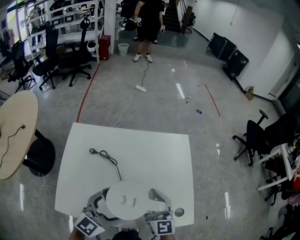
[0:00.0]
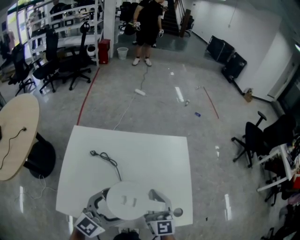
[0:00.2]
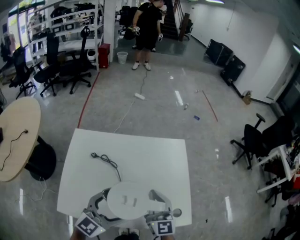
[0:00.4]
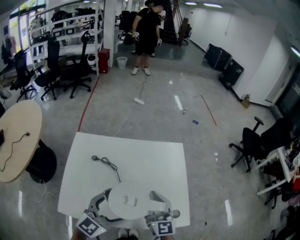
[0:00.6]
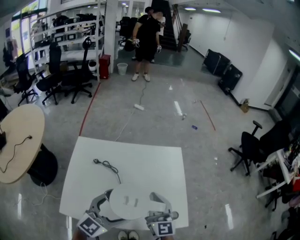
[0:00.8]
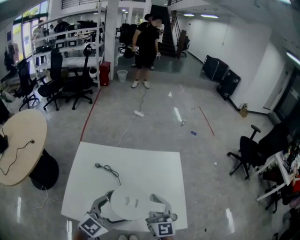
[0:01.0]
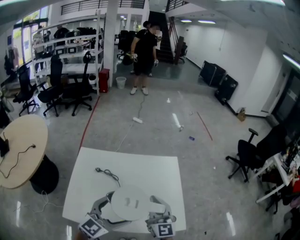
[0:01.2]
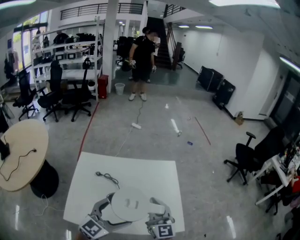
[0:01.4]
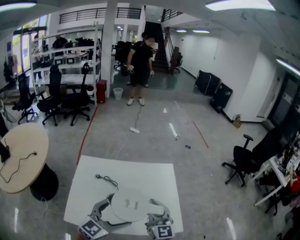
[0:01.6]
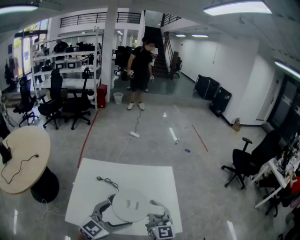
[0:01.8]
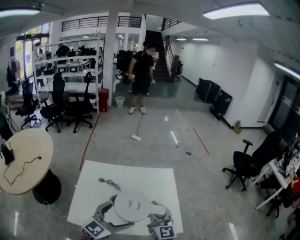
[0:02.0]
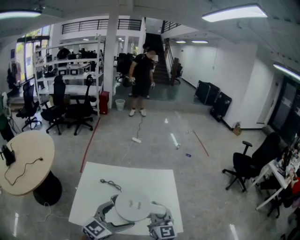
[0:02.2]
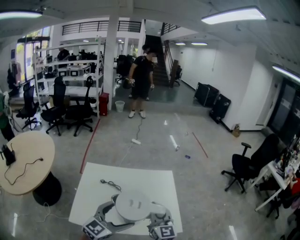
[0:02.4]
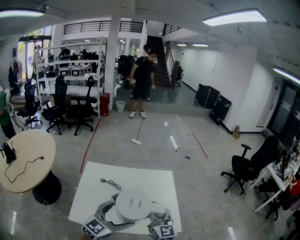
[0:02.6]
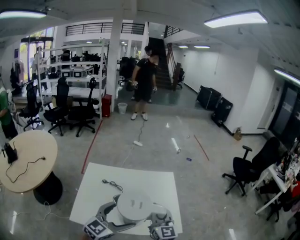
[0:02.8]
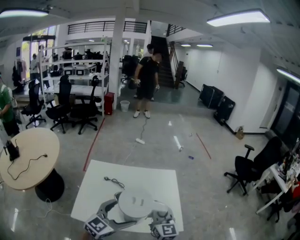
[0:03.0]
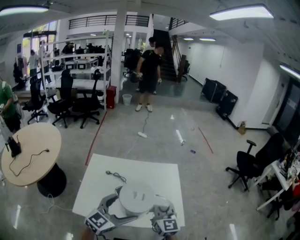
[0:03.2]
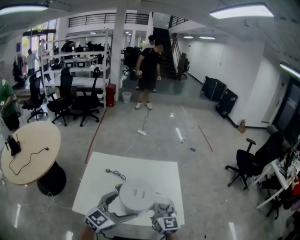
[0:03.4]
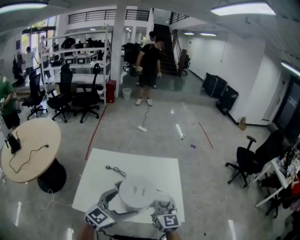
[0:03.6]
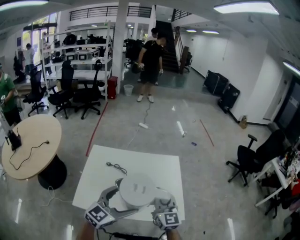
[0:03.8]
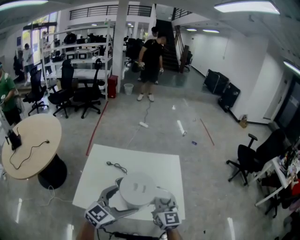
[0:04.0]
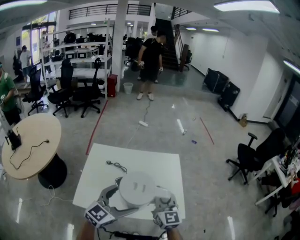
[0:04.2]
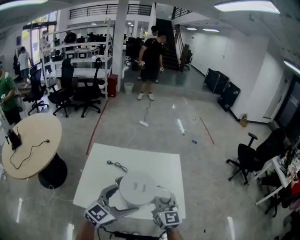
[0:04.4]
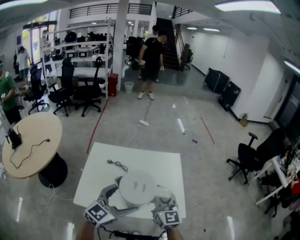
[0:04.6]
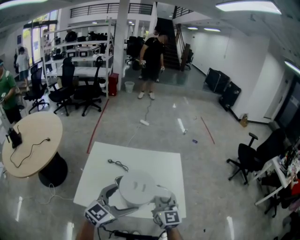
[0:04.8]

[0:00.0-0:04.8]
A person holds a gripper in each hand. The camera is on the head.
0:00.0 to 0:01.6: The two grippers go about 10 cm upward.
0:01.6 to 0:03.2: The left gripper changes place by approximately 5 cm.
0:03.2 to 0:04.8: Both grippers stay put.

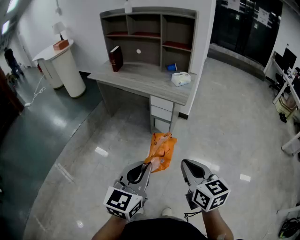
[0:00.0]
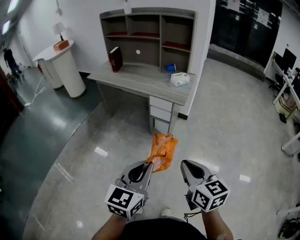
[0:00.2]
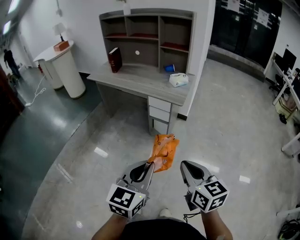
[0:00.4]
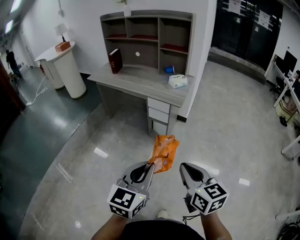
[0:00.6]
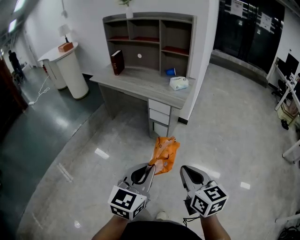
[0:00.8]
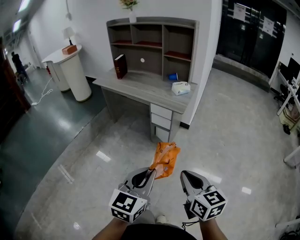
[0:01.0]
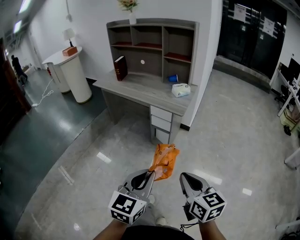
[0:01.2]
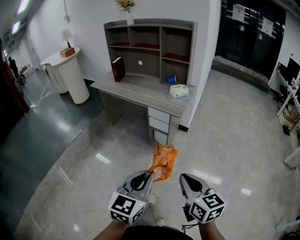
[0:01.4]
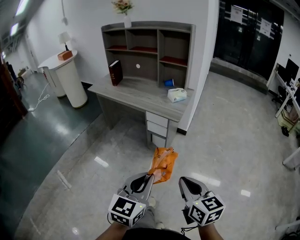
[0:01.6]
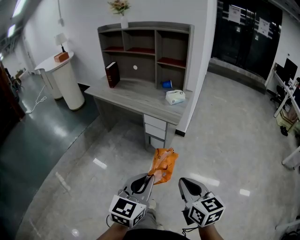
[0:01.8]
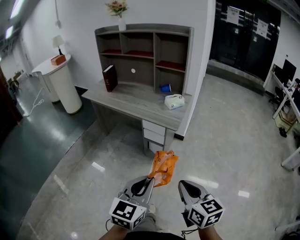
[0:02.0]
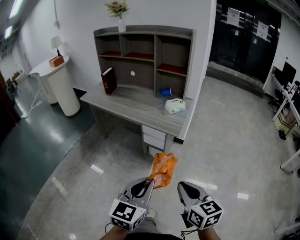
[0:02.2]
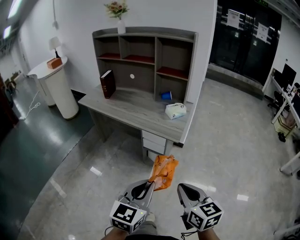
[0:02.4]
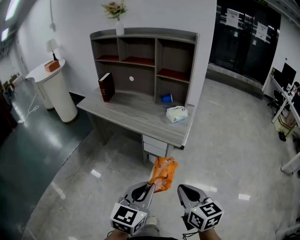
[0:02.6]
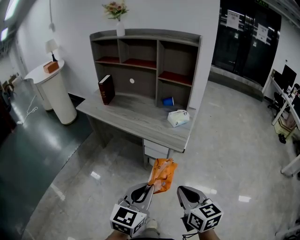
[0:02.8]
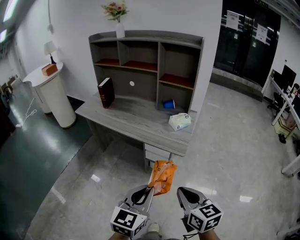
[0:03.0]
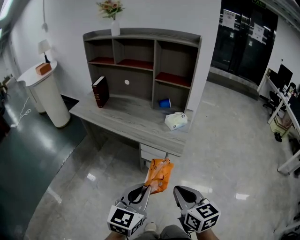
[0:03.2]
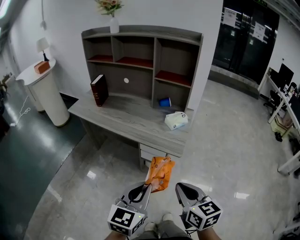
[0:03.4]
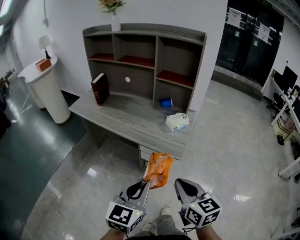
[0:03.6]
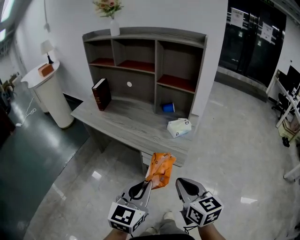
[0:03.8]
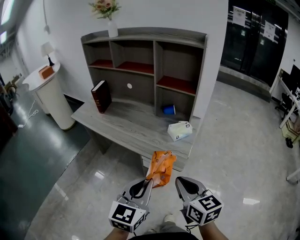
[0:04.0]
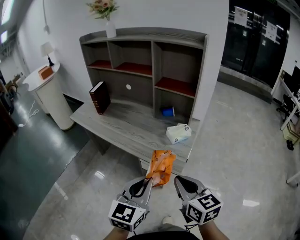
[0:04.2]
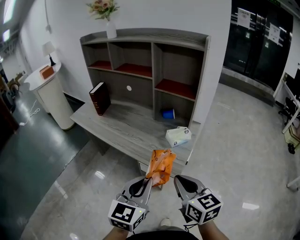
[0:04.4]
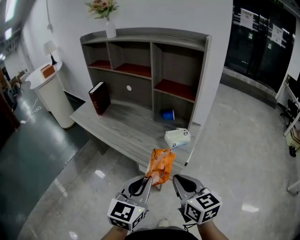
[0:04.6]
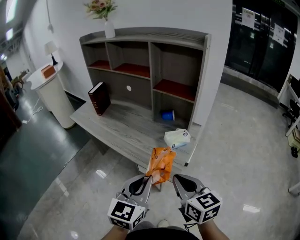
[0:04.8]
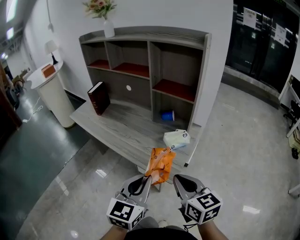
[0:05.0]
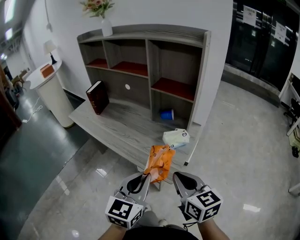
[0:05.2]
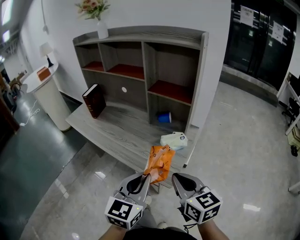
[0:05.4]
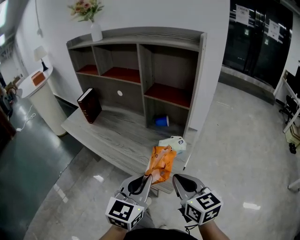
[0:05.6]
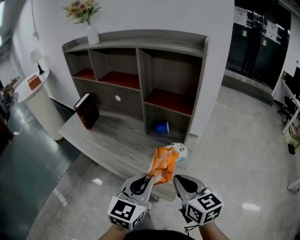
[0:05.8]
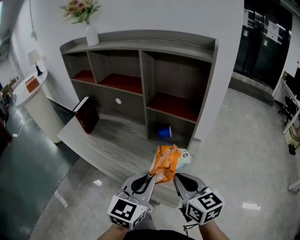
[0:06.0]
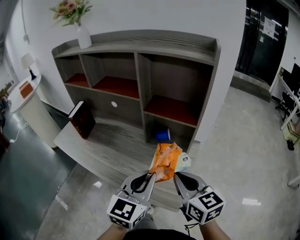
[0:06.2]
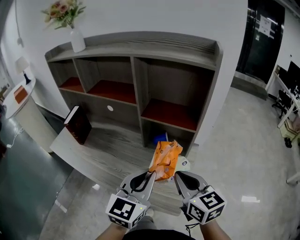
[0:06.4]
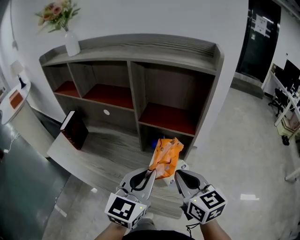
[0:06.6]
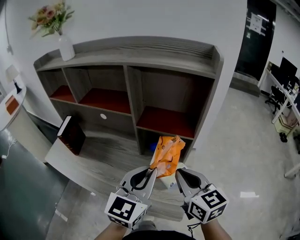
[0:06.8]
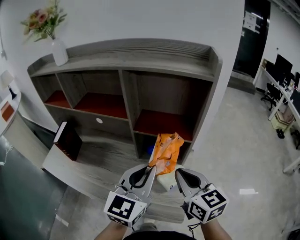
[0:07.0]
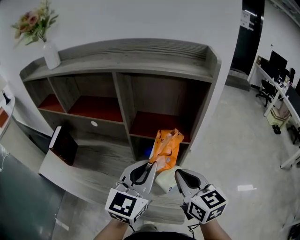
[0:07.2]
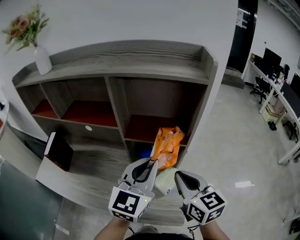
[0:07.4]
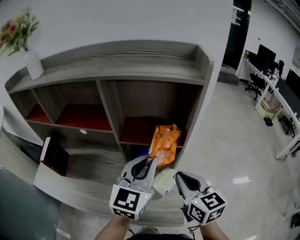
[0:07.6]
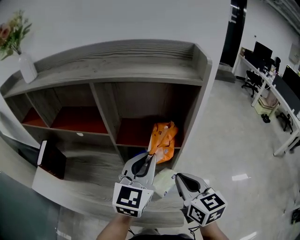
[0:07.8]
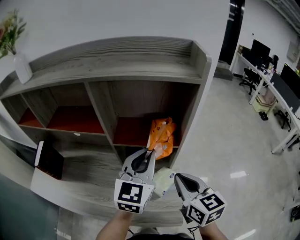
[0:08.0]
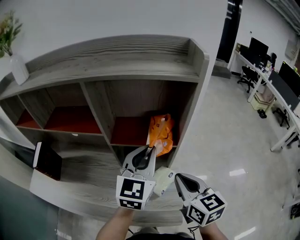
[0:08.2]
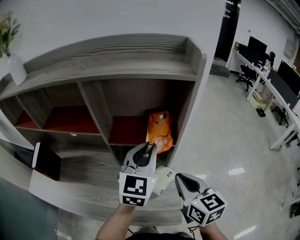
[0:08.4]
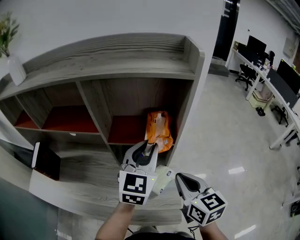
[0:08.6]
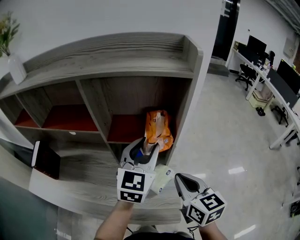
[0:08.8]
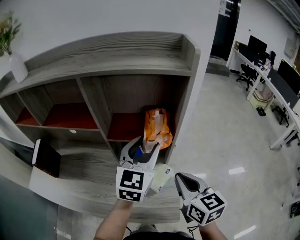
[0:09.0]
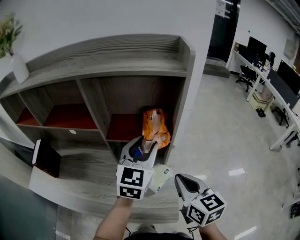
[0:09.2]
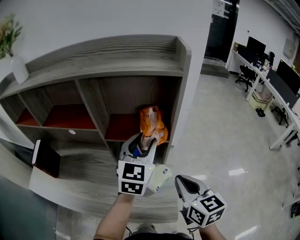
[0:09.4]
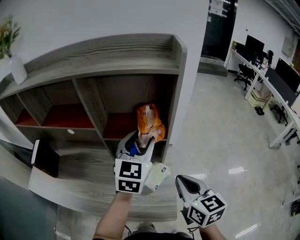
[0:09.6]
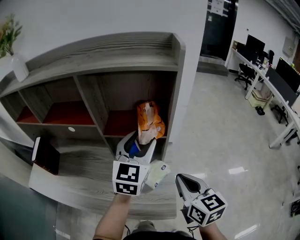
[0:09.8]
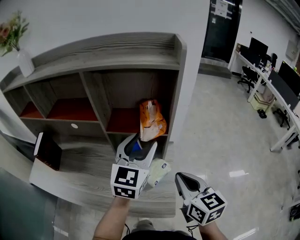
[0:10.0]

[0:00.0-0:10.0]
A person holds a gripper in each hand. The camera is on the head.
0:00.0 to 0:01.4: Both grippers move to the right, roughly 5 cm.
0:01.4 to 0:02.8: The grippers both shift forward by some 20 cm.
0:02.8 to 0:04.2: The grippers both shift forward by approximately 15 cm.
0:04.2 to 0:05.8: The left gripper goes about 15 cm forward and to the right. Meanwhile the right gripper travels forward by some 15 cm.
0:05.8 to 0:07.2: The right gripper heads forward, covering roughly 15 cm, while the left gripper shifts roughly 20 cm forward and upward.
0:07.2 to 0:08.6: The right gripper shifts by roughly 5 cm; the left gripper moves forward, some 10 cm.
0:08.6 to 0:10.0: The left gripper opens up. The right gripper ends up about 5 cm from where it was.

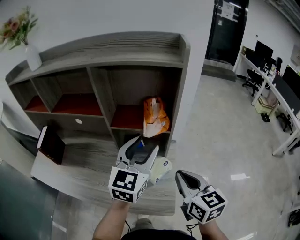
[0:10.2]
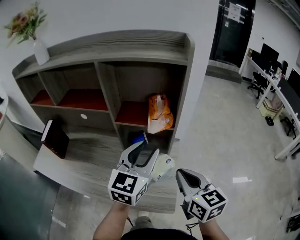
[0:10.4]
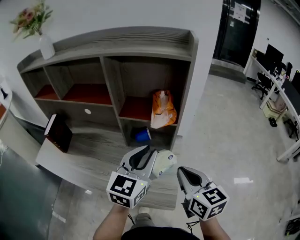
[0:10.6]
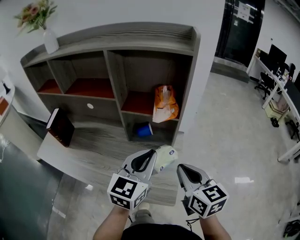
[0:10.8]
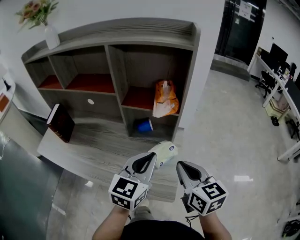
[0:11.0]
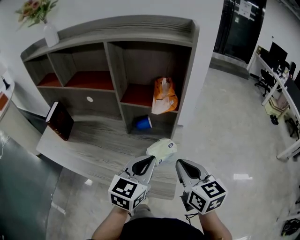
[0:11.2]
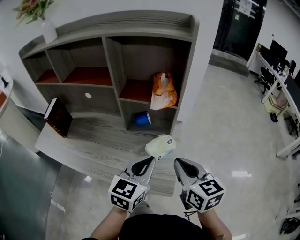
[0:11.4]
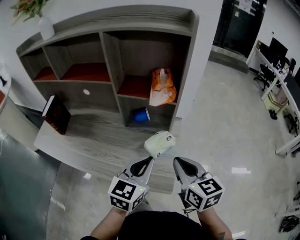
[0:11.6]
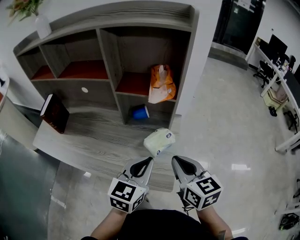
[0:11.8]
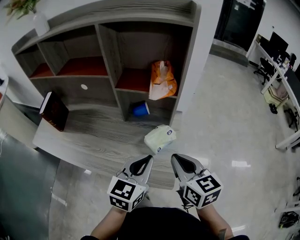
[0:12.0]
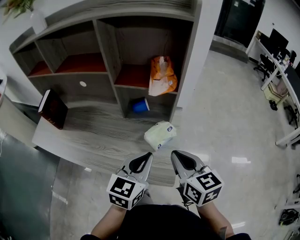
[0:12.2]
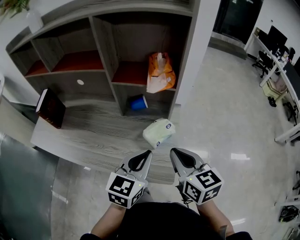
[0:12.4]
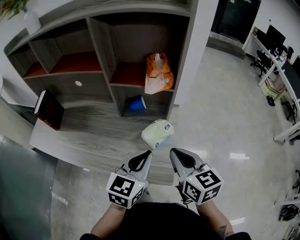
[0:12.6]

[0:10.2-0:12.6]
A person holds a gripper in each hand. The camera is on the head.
0:10.2 to 0:11.4: The left gripper is displaced backward and downward by some 15 cm, and closes. The right gripper moves approximately 5 cm.
0:11.4 to 0:12.6: The grippers stay close to where they were, moving slightly.

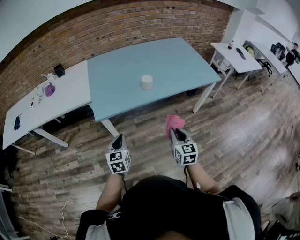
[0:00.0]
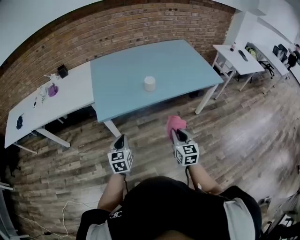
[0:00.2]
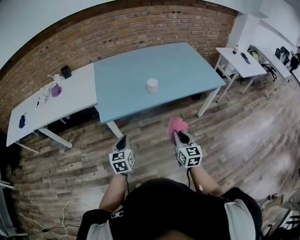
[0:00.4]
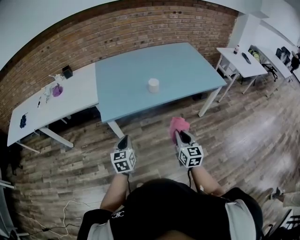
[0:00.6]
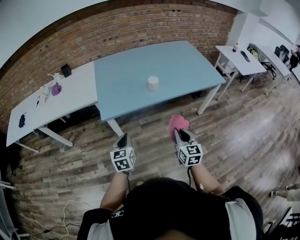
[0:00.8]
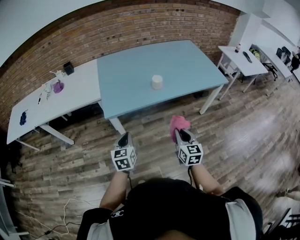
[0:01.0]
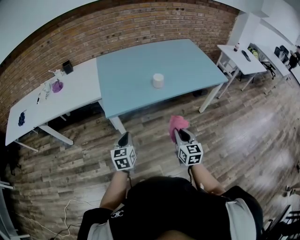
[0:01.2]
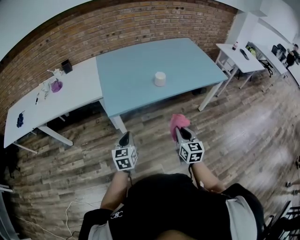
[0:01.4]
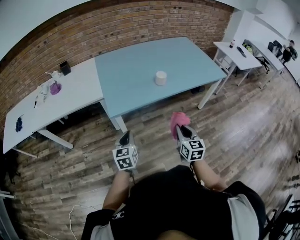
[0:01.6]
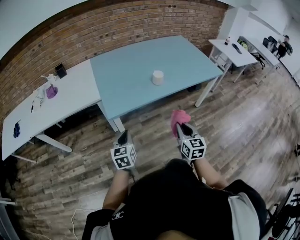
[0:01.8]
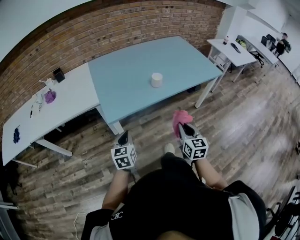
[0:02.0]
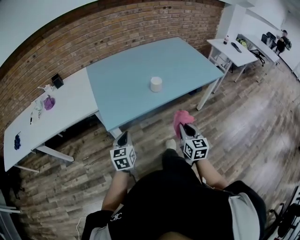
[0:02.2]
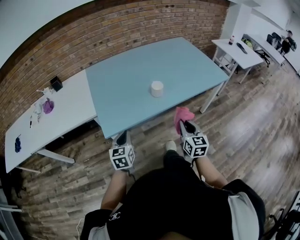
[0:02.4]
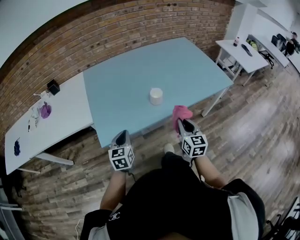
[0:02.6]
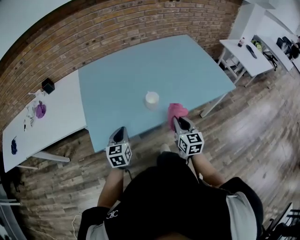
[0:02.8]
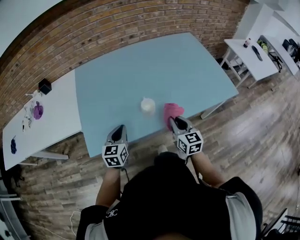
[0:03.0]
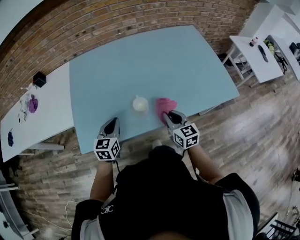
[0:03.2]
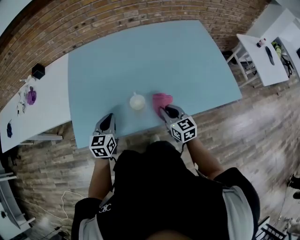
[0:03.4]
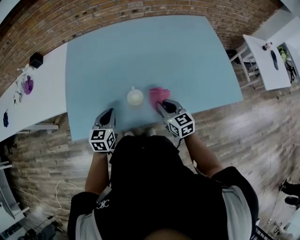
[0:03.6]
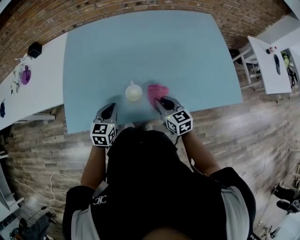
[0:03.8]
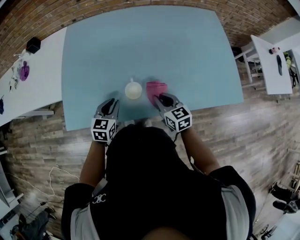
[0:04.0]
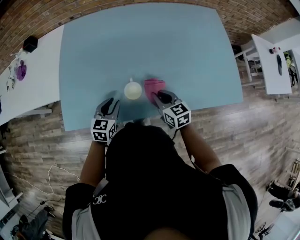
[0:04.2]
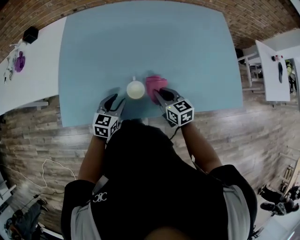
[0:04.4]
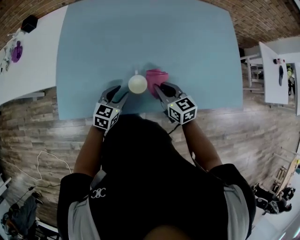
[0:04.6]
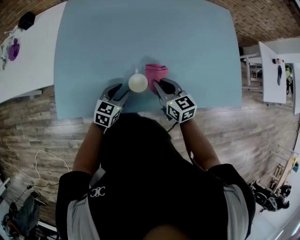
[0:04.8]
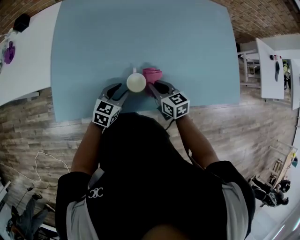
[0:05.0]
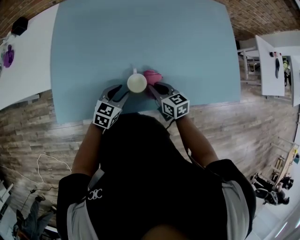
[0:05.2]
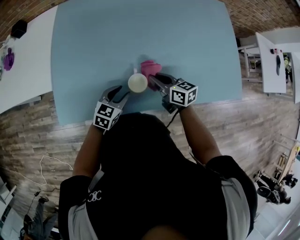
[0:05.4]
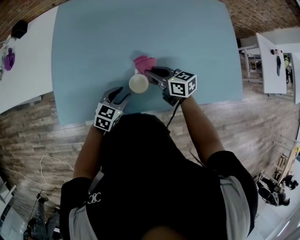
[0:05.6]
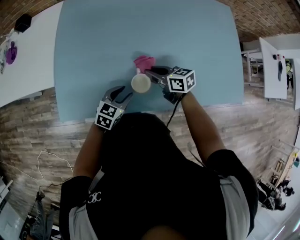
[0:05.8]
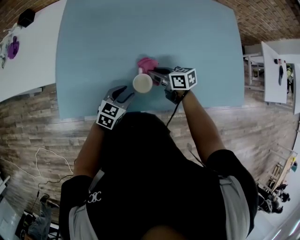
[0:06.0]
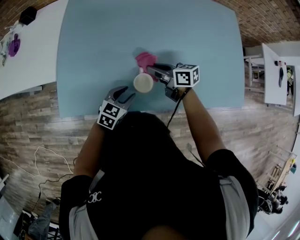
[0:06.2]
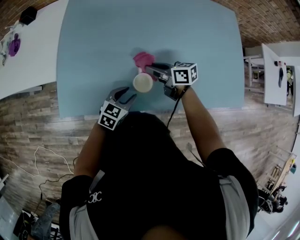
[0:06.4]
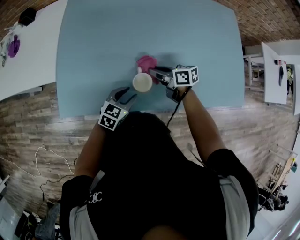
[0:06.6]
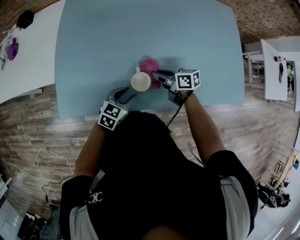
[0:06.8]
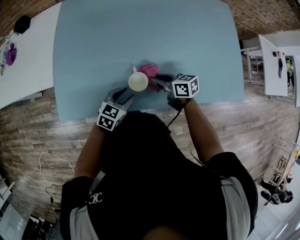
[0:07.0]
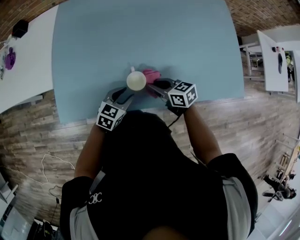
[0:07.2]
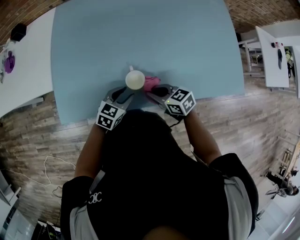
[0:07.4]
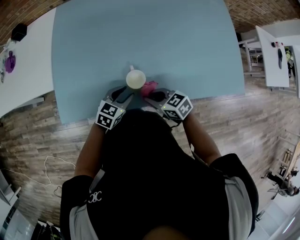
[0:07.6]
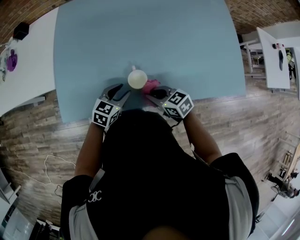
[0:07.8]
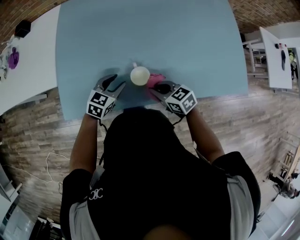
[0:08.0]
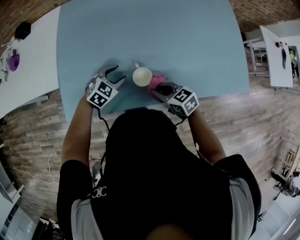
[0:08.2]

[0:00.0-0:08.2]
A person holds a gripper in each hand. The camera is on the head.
0:00.0 to 0:01.6: Both grippers travel together to the left, about 10 cm.
0:01.6 to 0:03.2: The two grippers go roughly 35 cm forward. The right gripper changes its angle by about 20 degrees.
0:03.2 to 0:05.0: The right gripper travels forward and downward by approximately 10 cm, and turns by approximately 30 degrees. Meanwhile the left gripper travels downward and to the right by approximately 15 cm, and opens its fingers.
0:05.0 to 0:06.6: The right gripper goes about 5 cm forward, and turns by approximately 30 degrees.
0:06.6 to 0:08.2: The left gripper heads forward, covering some 10 cm, and changes its angle by roughly 30 degrees. The right gripper moves backward, approximately 10 cm, and swivels some 30 degrees.
